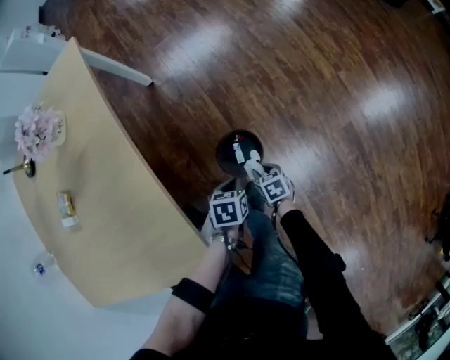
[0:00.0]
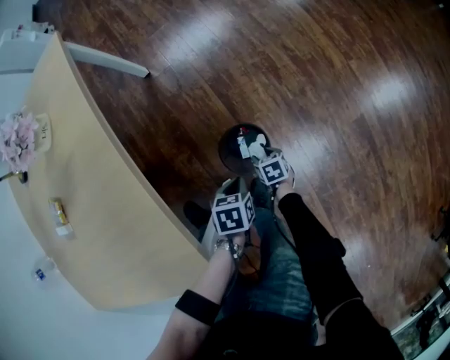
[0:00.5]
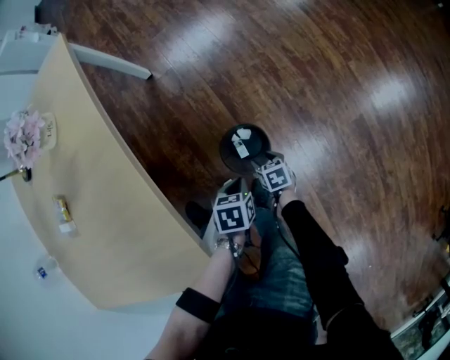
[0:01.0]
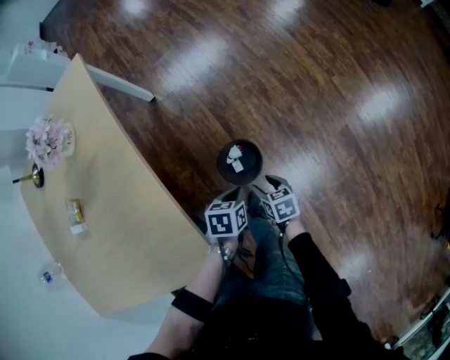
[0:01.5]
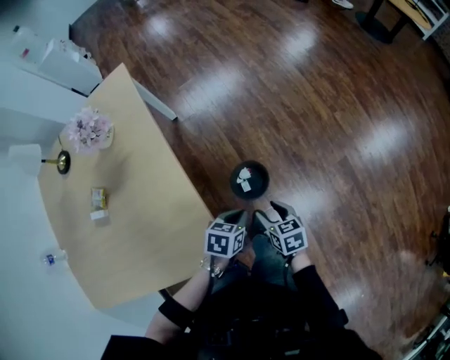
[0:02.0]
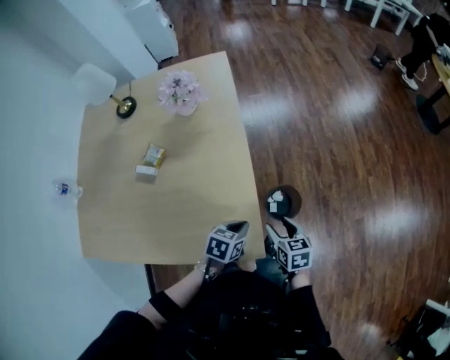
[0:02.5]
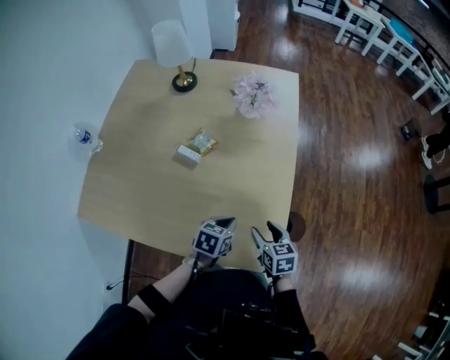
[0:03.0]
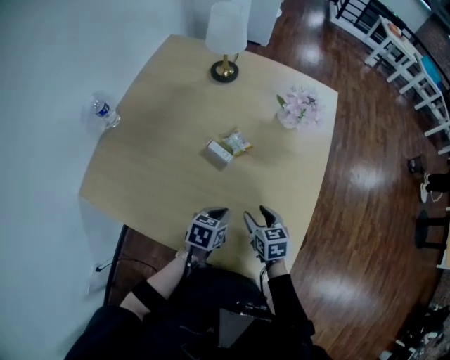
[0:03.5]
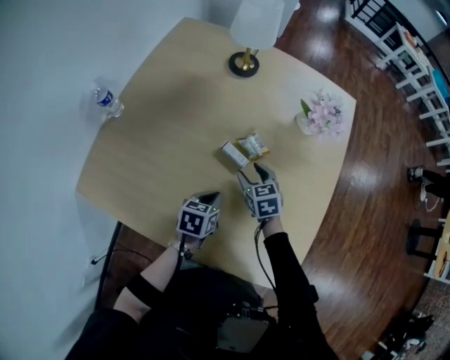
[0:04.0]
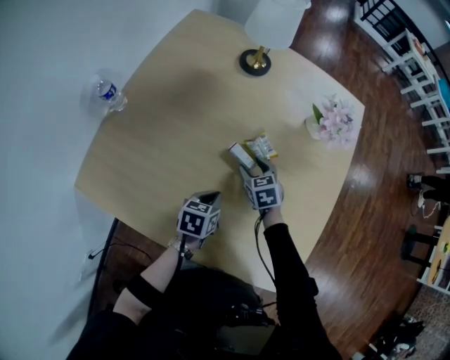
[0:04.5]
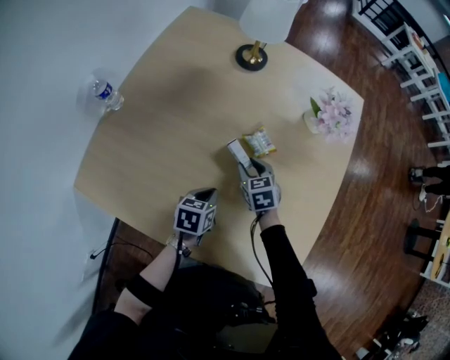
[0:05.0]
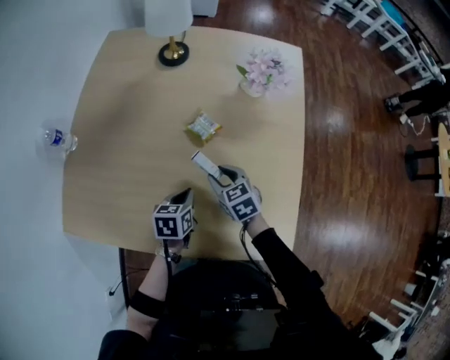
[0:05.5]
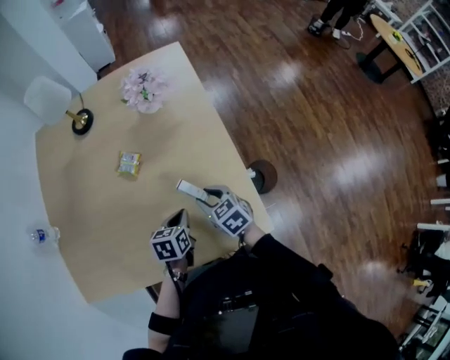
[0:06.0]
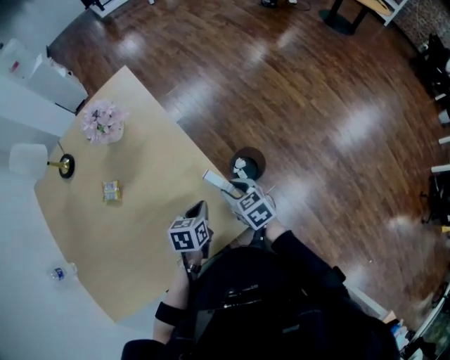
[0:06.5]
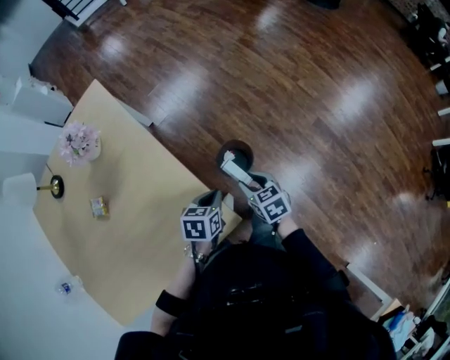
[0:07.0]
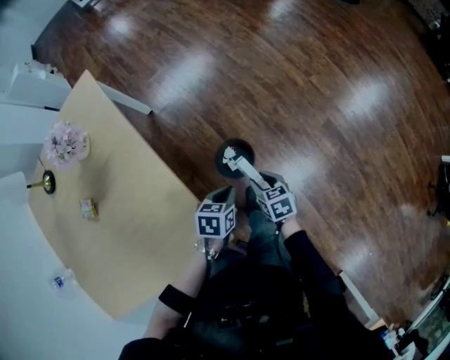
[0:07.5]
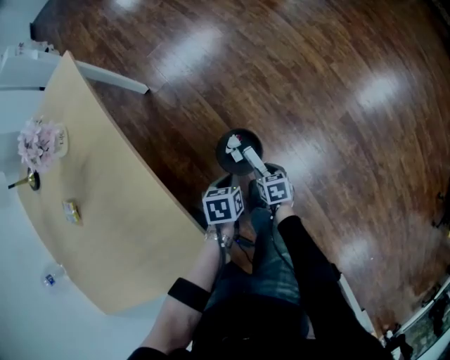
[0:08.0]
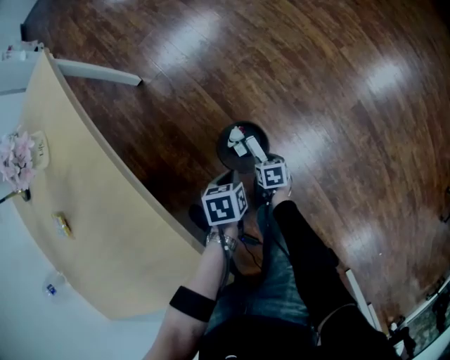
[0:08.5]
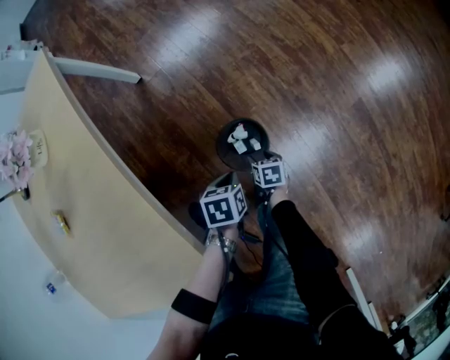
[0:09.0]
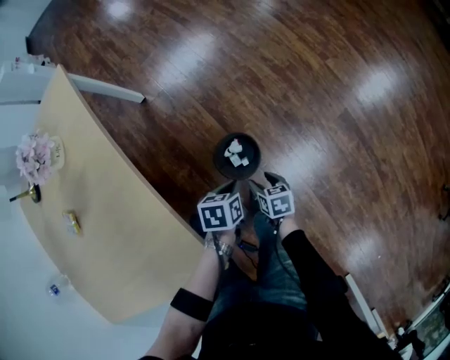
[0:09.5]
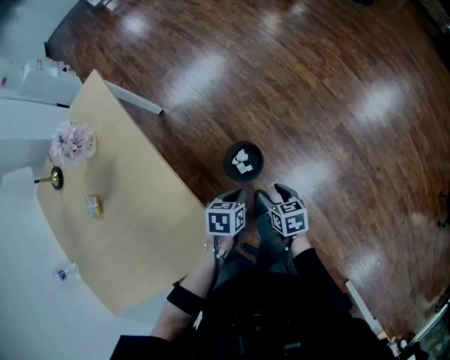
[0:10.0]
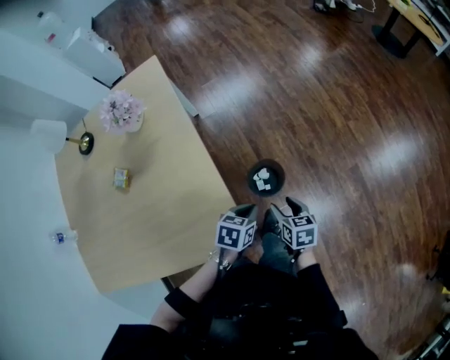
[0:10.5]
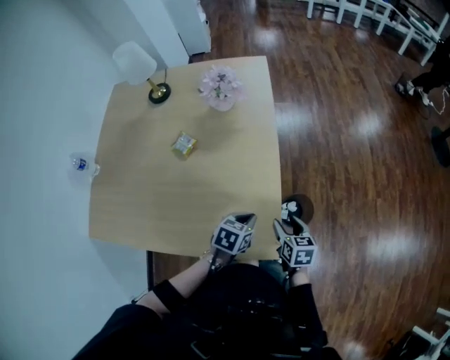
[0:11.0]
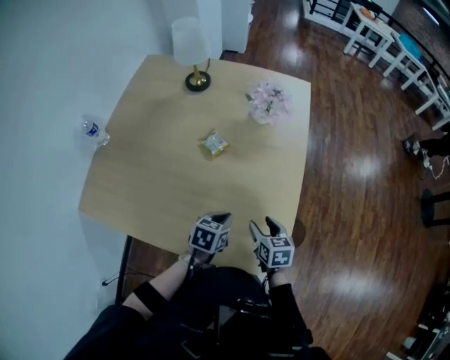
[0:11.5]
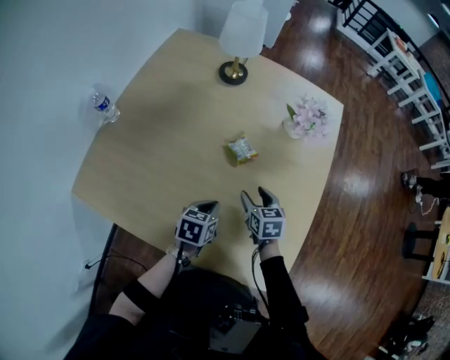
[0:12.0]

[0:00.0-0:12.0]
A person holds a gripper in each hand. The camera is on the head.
0:00.0 to 0:02.0: The grippers both shift upward by roughly 20 cm. The right gripper opens its fingers.
0:02.0 to 0:04.0: Both grippers are carried some 60 cm. The left gripper changes its angle by roughly 50 degrees, while the right gripper rotates around the line of its fingers by about 50 degrees, counterclockwise from behind.
0:04.0 to 0:06.0: The grippers both shift to the right and backward by approximately 20 cm. The left gripper rotates some 20 degrees. The right gripper swivels approximately 20 degrees.
0:06.0 to 0:08.0: The pair of grippers is taken about 40 cm. The right gripper rotates around the line of its fingers by approximately 40 degrees, clockwise from behind. Meanwhile the left gripper turns by about 20 degrees.
0:08.0 to 0:10.0: The left gripper moves upward and backward, approximately 10 cm, while the right gripper shifts some 20 cm upward.
0:10.0 to 0:12.0: Both grippers are carried roughly 60 cm. The right gripper rotates around the line of its fingers by about 50 degrees, counterclockwise from behind, while the left gripper rotates approximately 50 degrees.

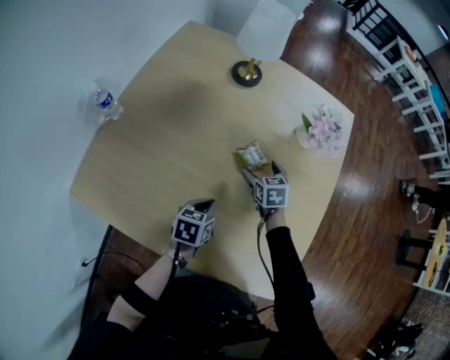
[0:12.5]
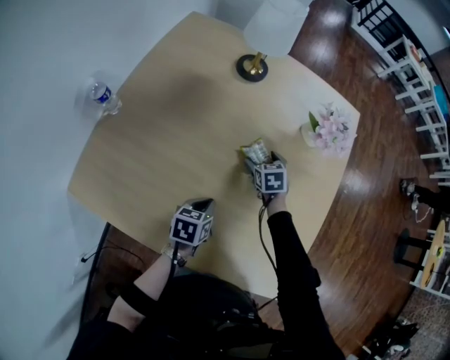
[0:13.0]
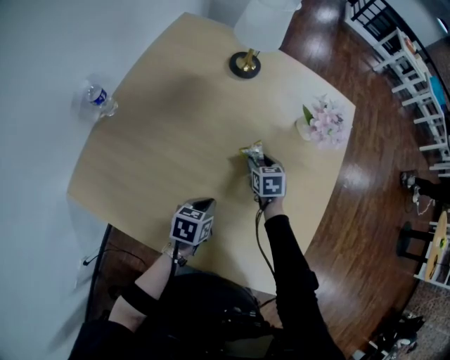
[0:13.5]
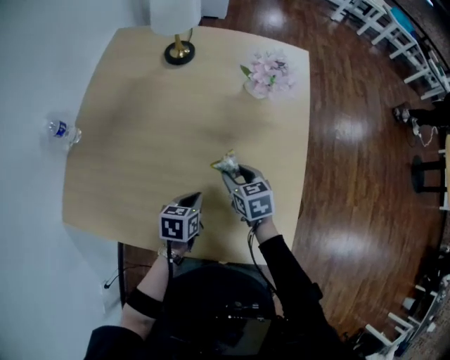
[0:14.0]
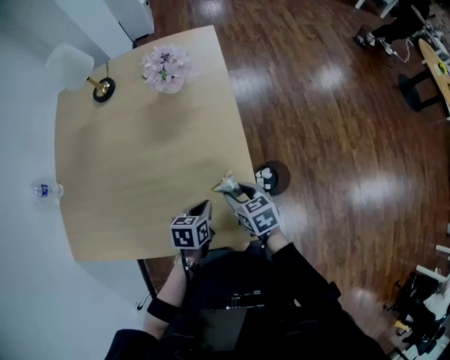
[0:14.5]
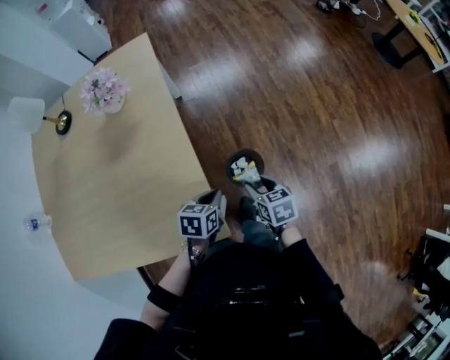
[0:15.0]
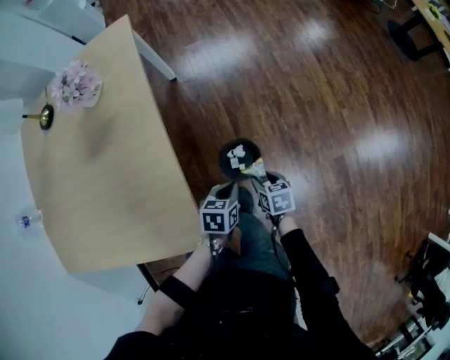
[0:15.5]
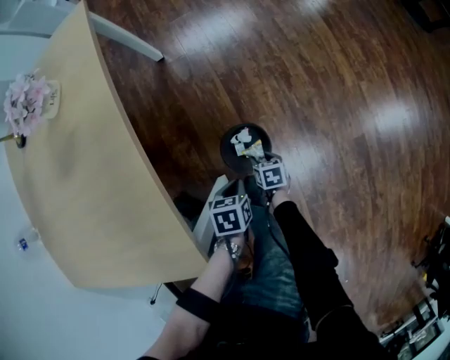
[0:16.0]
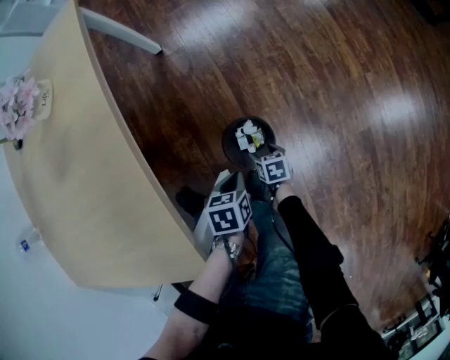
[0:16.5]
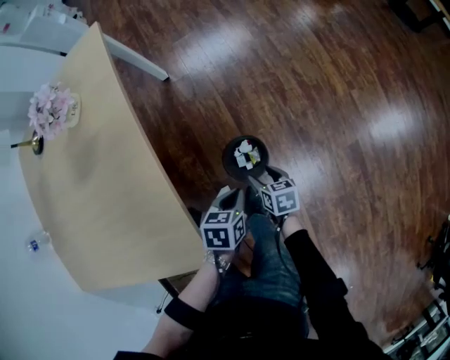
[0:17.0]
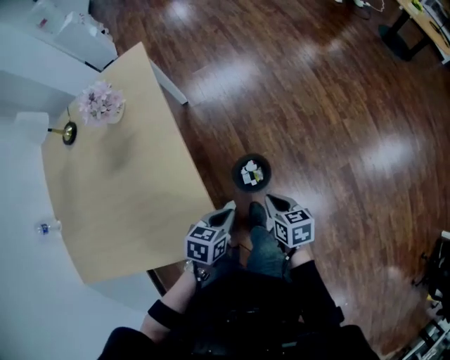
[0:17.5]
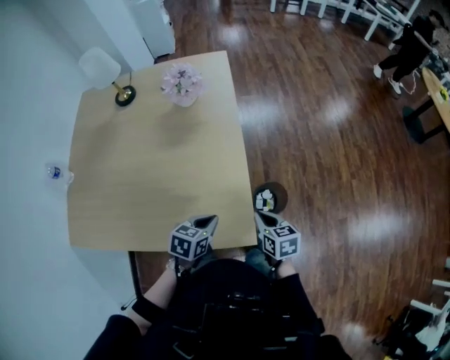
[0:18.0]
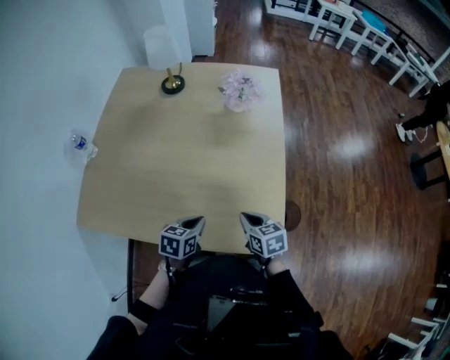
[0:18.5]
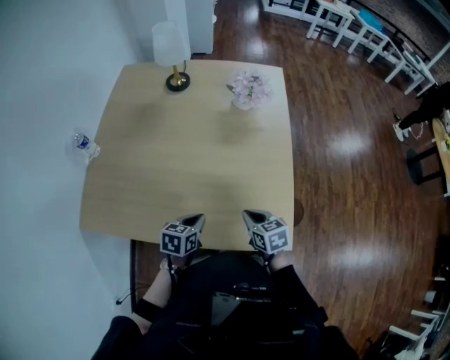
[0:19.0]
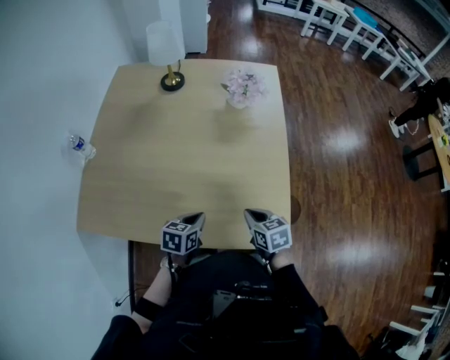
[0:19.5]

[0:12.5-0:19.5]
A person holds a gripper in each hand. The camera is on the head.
0:12.5 to 0:14.5: The left gripper shifts about 30 cm to the right, and rotates roughly 20 degrees. The right gripper travels to the right and backward by about 35 cm, swivels approximately 20 degrees, and closes its fingers.
0:14.5 to 0:16.0: The left gripper travels to the right and downward by approximately 40 cm. The right gripper moves downward and to the right, some 50 cm, and swivels approximately 30 degrees.
0:16.0 to 0:17.5: The left gripper shifts roughly 25 cm upward, and changes its angle by approximately 30 degrees. The right gripper goes approximately 40 cm upward, turns by some 20 degrees, and closes.
0:17.5 to 0:19.5: The pair of grippers is taken roughly 40 cm. The right gripper swivels about 30 degrees, while the left gripper turns by roughly 30 degrees.

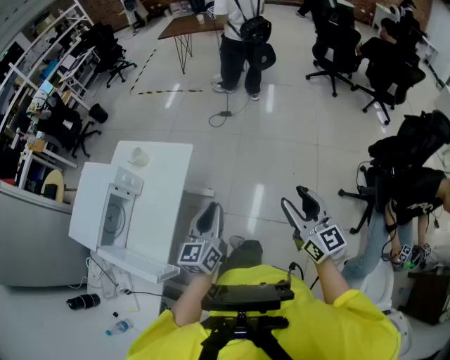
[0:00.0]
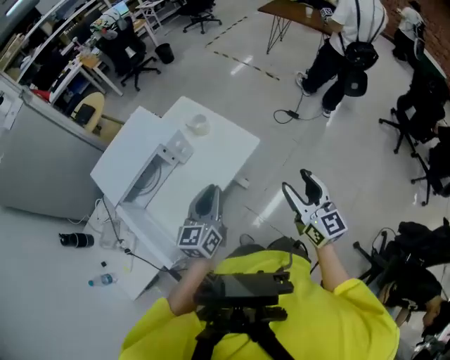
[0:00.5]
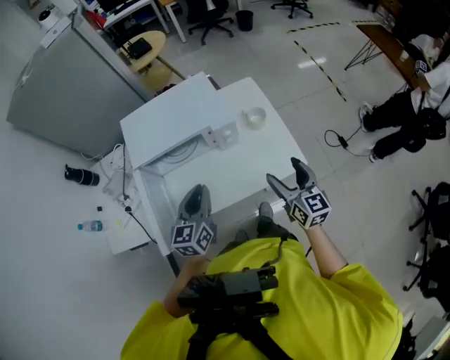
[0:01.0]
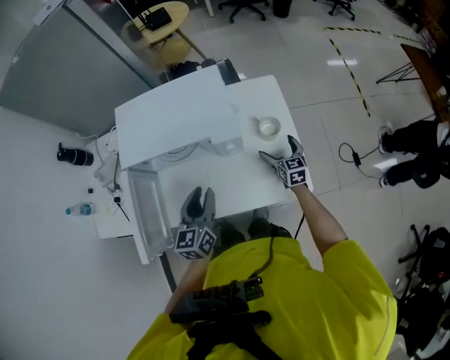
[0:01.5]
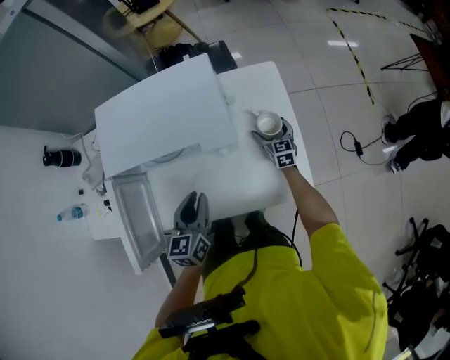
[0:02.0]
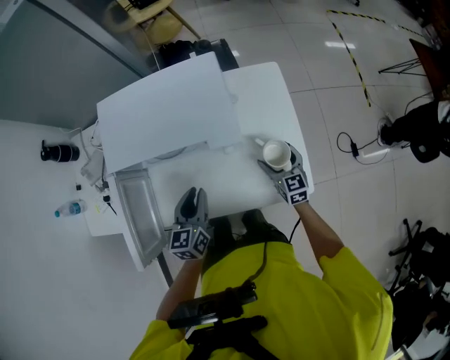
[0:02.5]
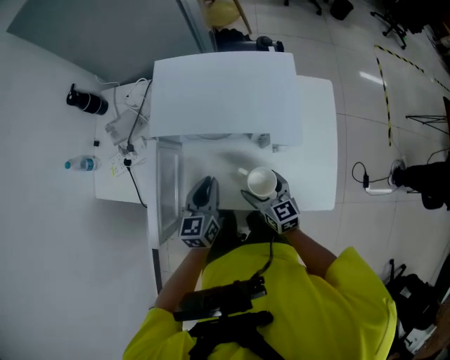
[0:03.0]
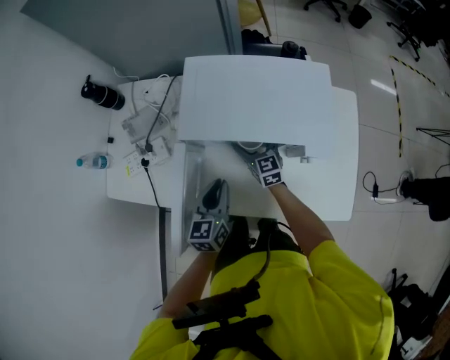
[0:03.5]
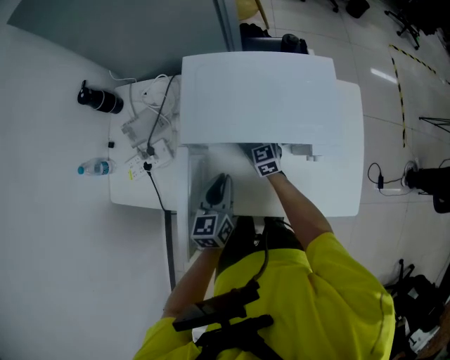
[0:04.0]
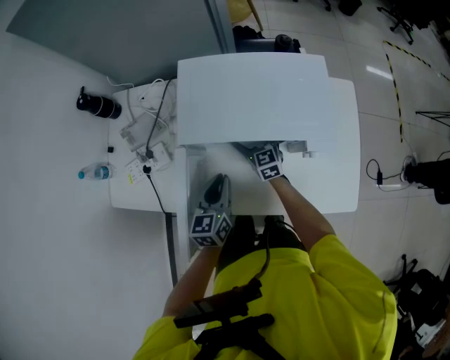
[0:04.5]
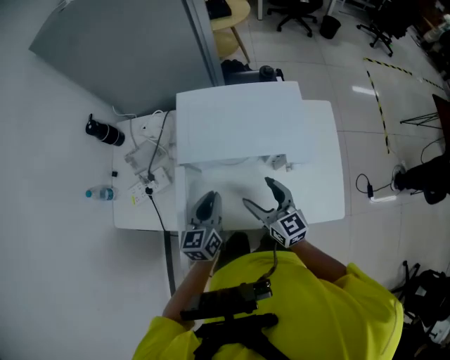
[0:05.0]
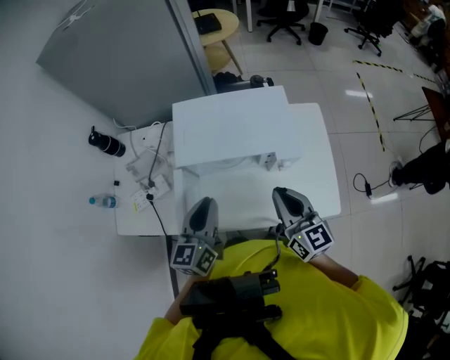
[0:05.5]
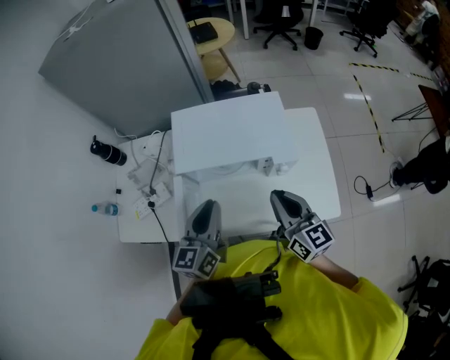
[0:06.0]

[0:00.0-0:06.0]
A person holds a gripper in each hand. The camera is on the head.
0:00.0 to 0:02.0: The pair of grippers is taken about 70 cm. The right gripper swivels some 60 degrees, and opens; the left gripper rotates about 70 degrees.
0:02.0 to 0:04.0: The right gripper goes about 40 cm to the left, and swivels about 20 degrees, while the left gripper shifts approximately 20 cm to the left.
0:04.0 to 0:06.0: The right gripper heads upward, backward and to the right, covering roughly 40 cm, rotates some 30 degrees, and closes its fingers. The left gripper travels upward by roughly 20 cm.

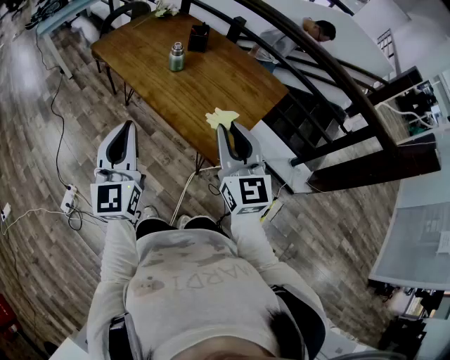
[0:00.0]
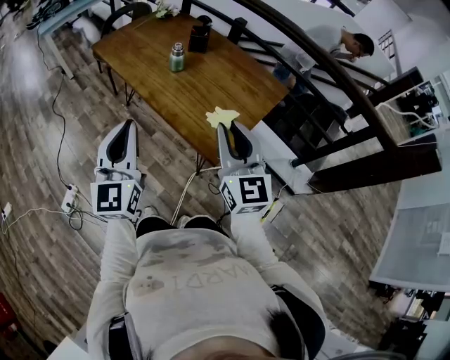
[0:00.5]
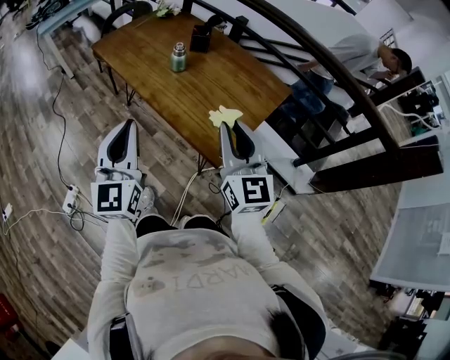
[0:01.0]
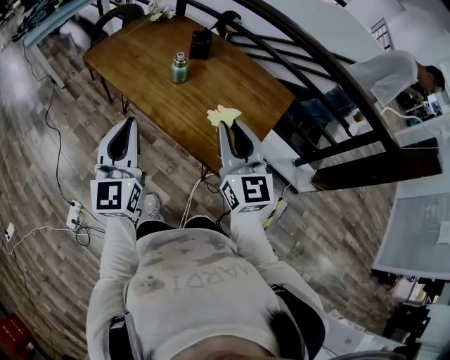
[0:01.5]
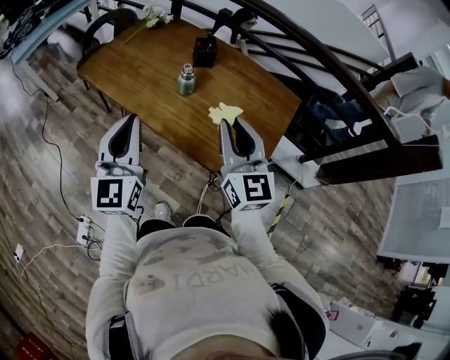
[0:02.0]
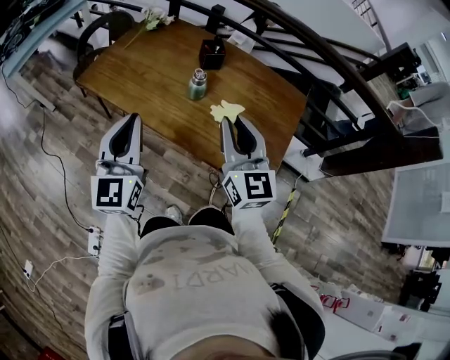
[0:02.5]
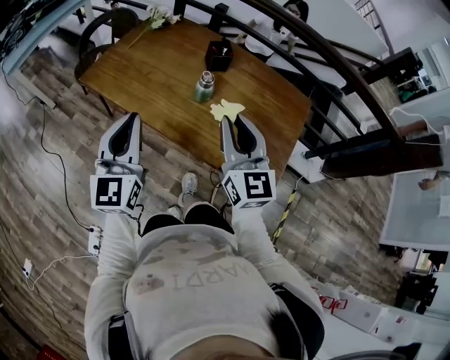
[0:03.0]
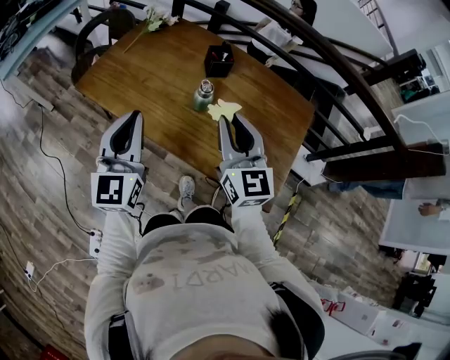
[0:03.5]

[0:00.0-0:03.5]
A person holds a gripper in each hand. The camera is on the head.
0:00.0 to 0:02.0: Both grippers move forward and to the left, some 20 cm.
0:02.0 to 0:03.5: The two grippers go some 15 cm forward and to the left.
